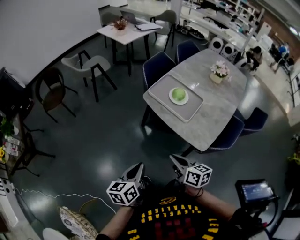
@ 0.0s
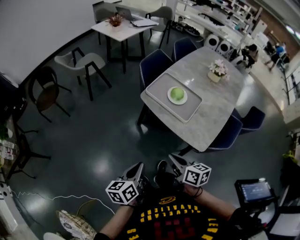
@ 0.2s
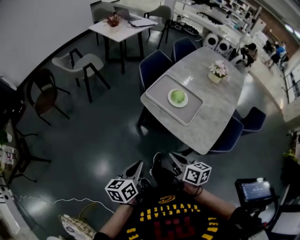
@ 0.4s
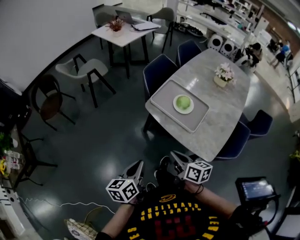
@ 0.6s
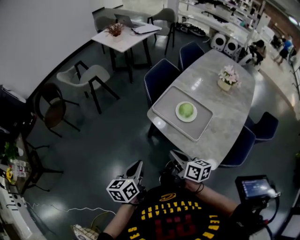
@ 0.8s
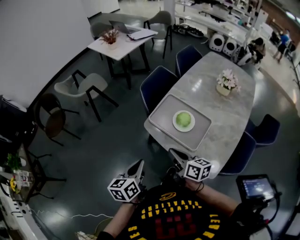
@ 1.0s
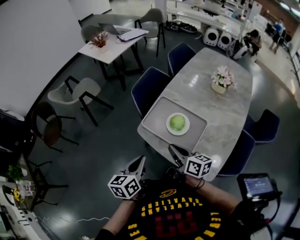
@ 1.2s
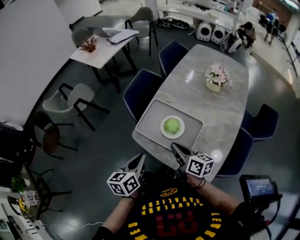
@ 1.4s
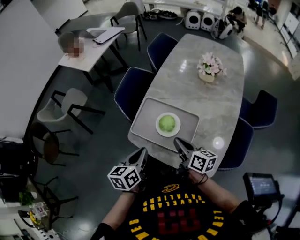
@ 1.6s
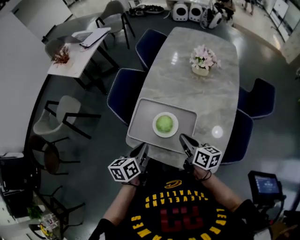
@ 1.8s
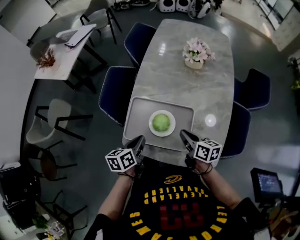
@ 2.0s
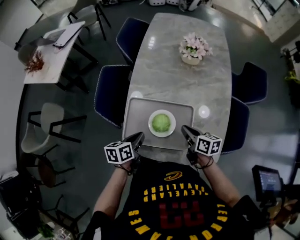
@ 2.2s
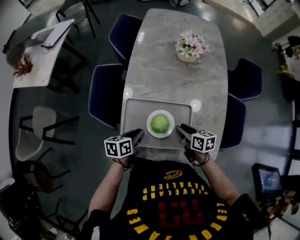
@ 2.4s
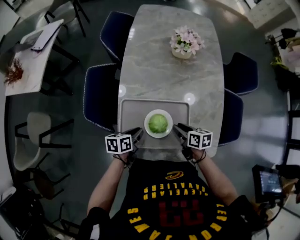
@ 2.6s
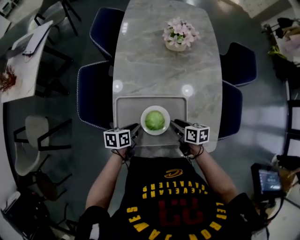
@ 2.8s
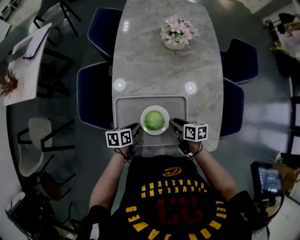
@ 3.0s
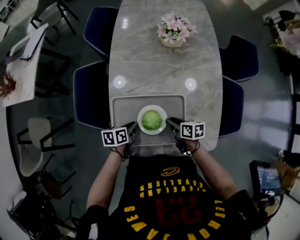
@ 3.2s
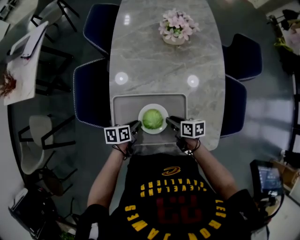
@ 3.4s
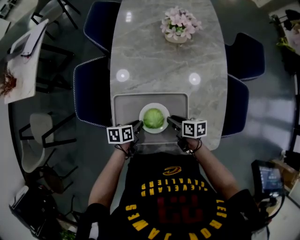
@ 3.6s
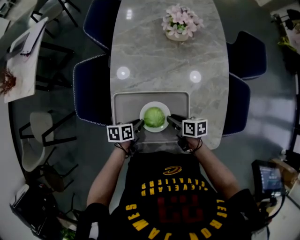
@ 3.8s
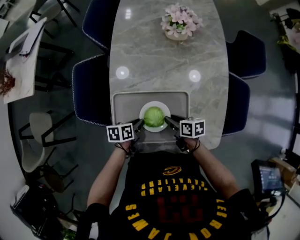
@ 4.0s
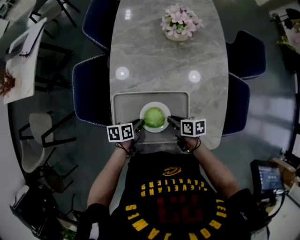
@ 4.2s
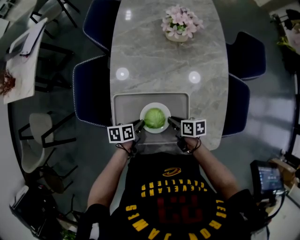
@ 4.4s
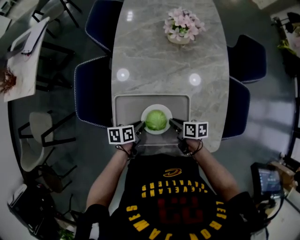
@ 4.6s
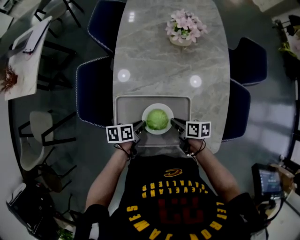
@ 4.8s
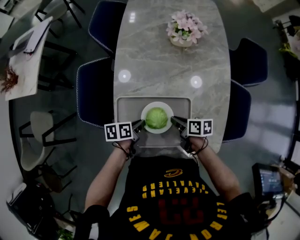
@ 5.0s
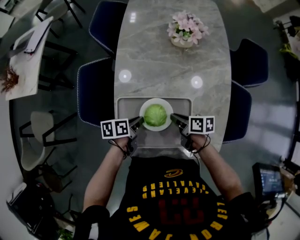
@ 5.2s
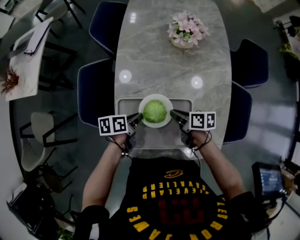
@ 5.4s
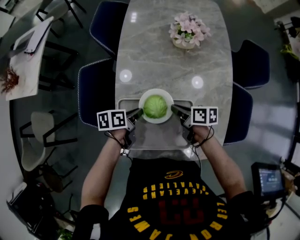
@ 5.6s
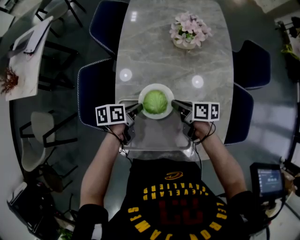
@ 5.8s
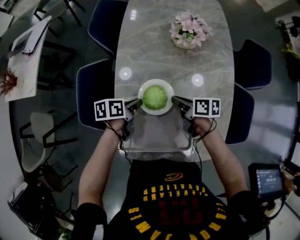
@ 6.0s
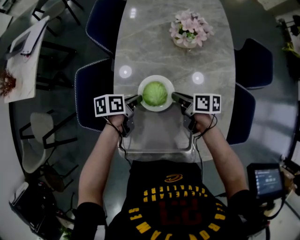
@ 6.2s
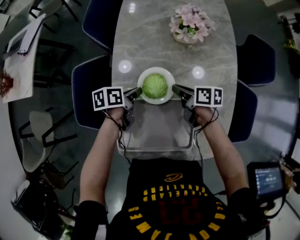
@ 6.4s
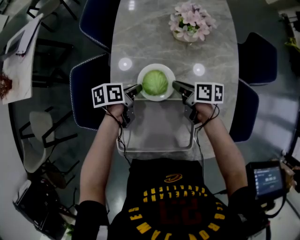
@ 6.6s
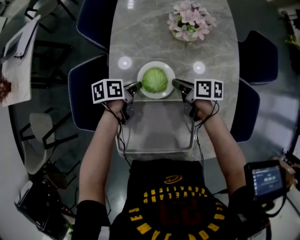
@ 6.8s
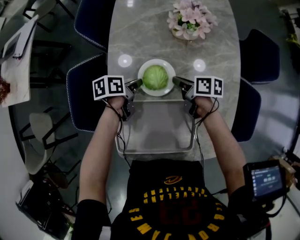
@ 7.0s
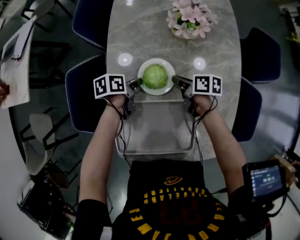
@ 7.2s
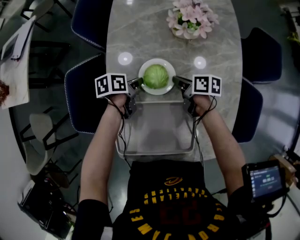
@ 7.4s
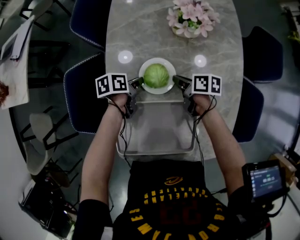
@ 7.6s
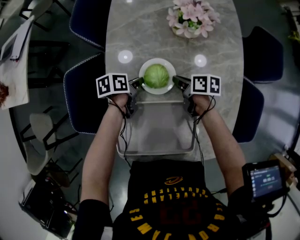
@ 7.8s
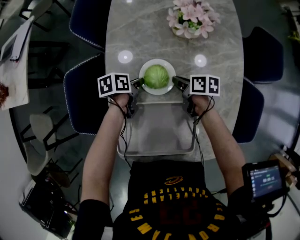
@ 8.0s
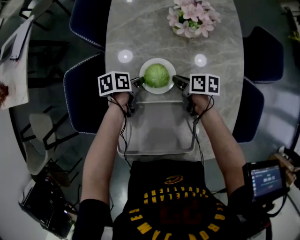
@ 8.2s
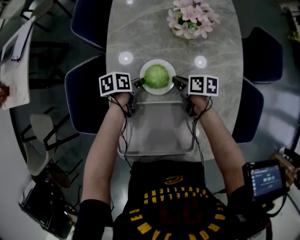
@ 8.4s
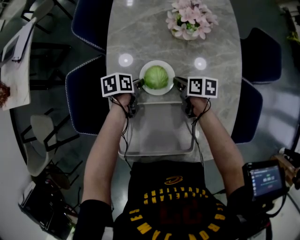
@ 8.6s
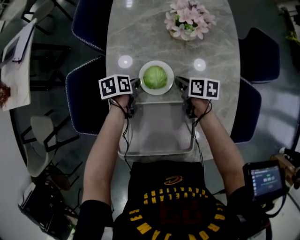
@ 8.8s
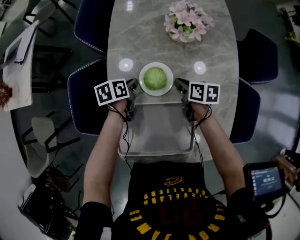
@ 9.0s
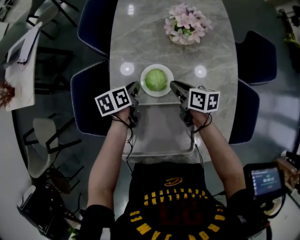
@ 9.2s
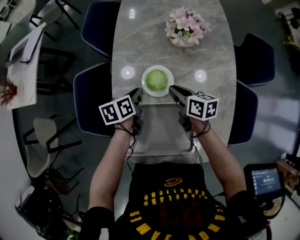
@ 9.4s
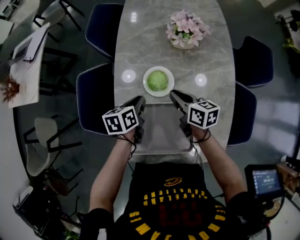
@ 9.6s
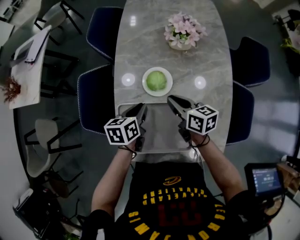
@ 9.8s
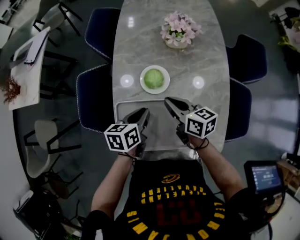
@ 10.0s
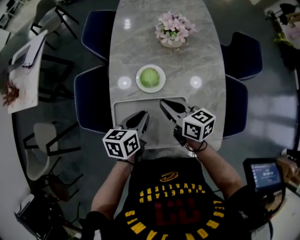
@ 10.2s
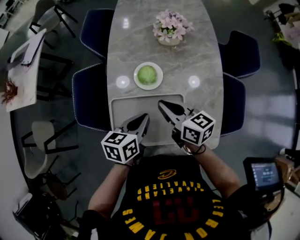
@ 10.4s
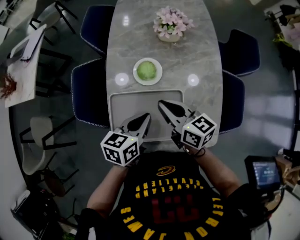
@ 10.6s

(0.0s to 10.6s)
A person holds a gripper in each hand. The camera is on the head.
0.0s - 1.6s: The right gripper is displaced forward and to the right by some 35 cm, and turns by some 20 degrees. The left gripper shifts approximately 40 cm forward.
1.6s - 3.0s: The grippers both shift downward by about 20 cm. The left gripper turns by roughly 50 degrees. The right gripper rotates some 30 degrees, and opens.
3.0s - 4.6s: The right gripper closes.
4.6s - 6.0s: The two grippers go roughly 15 cm forward and upward.
6.0s - 7.6s: The right gripper travels downward and forward by about 10 cm. The left gripper travels forward and downward by about 15 cm.
7.6s - 9.0s: There are only small adjustments of the grippers.
9.0s - 10.6s: The left gripper moves backward and upward, about 30 cm, and changes its angle by approximately 30 degrees; the right gripper goes roughly 30 cm upward and backward, and turns by approximately 30 degrees.

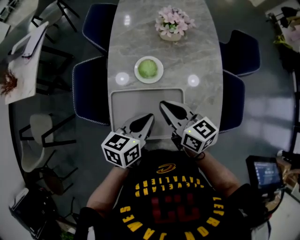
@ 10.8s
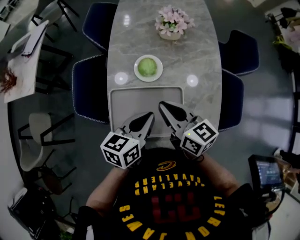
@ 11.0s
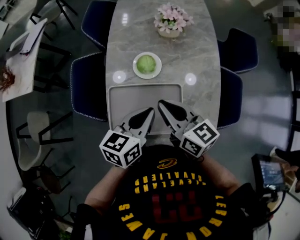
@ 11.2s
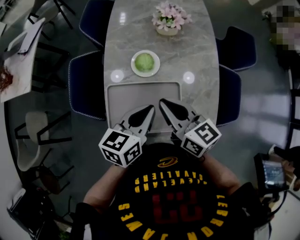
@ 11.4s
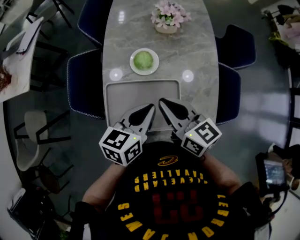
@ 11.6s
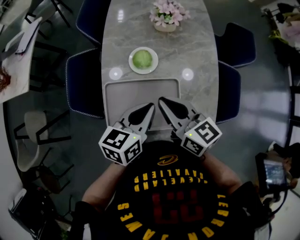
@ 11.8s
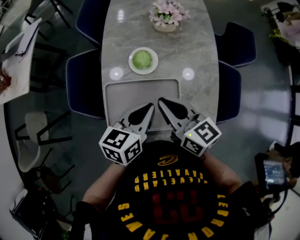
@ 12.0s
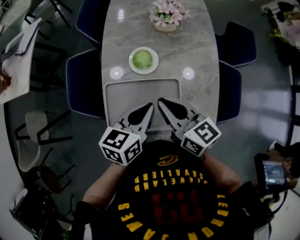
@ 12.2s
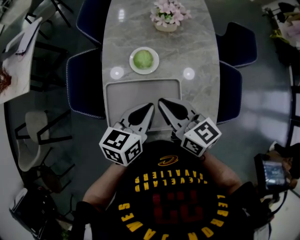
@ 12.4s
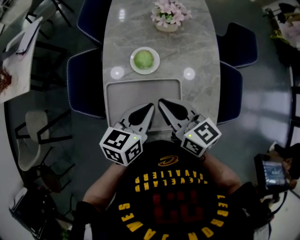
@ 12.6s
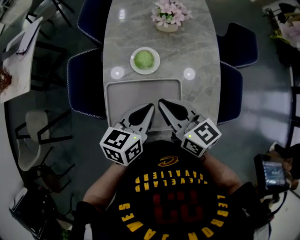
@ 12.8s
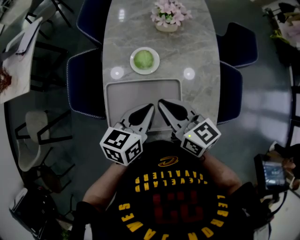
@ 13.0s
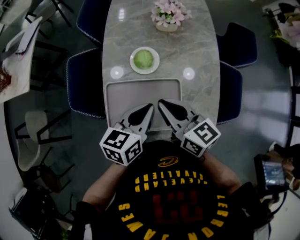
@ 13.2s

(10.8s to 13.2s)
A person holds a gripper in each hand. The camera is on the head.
10.8s - 12.0s: The grippers stay close to where they were, moving slightly.
12.0s - 13.2s: Both grippers stay about where they are.

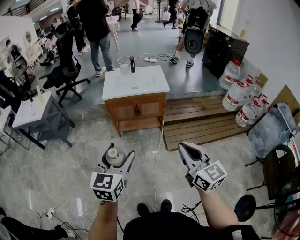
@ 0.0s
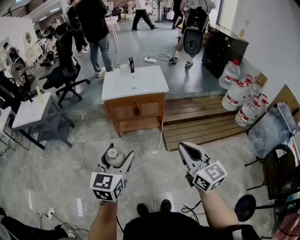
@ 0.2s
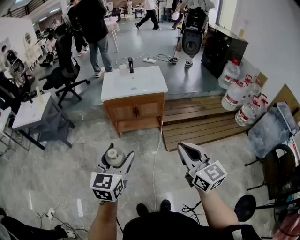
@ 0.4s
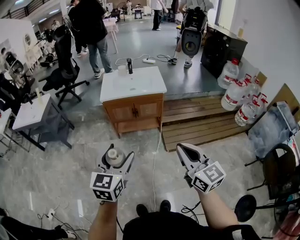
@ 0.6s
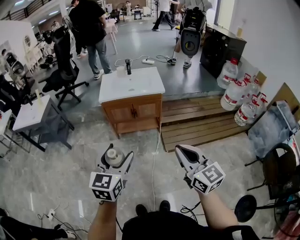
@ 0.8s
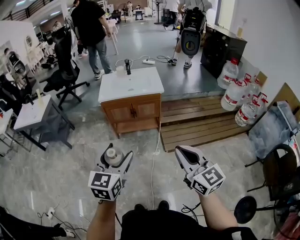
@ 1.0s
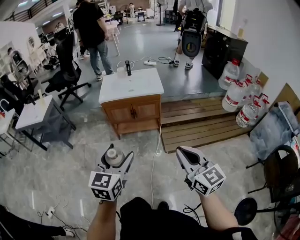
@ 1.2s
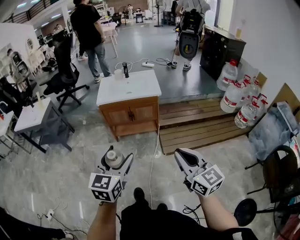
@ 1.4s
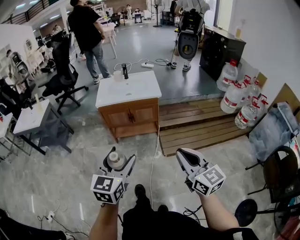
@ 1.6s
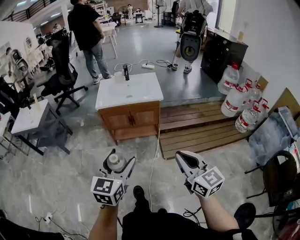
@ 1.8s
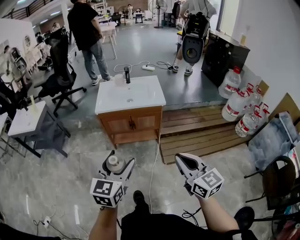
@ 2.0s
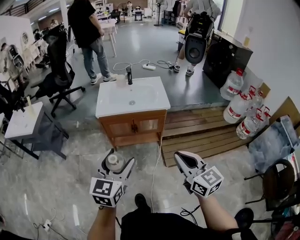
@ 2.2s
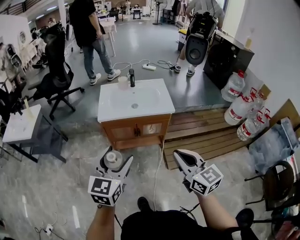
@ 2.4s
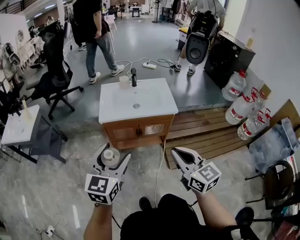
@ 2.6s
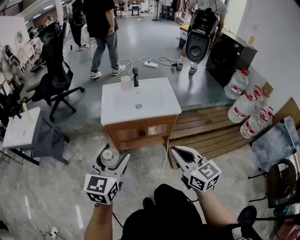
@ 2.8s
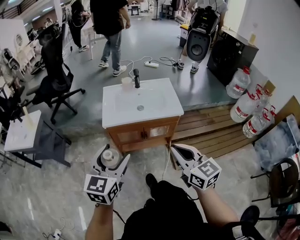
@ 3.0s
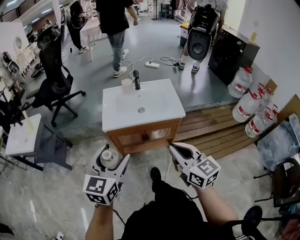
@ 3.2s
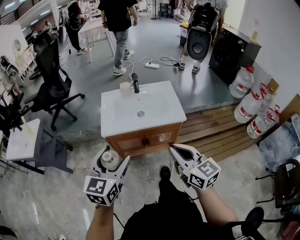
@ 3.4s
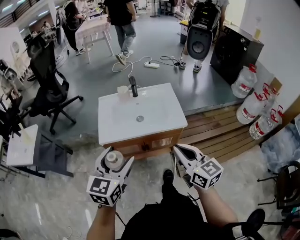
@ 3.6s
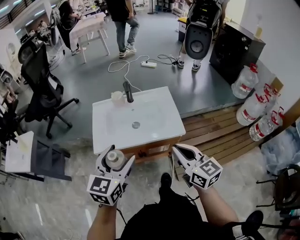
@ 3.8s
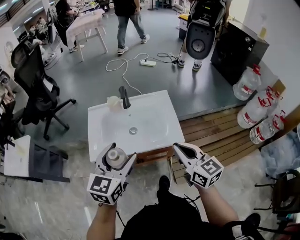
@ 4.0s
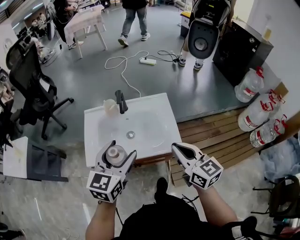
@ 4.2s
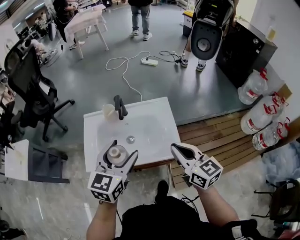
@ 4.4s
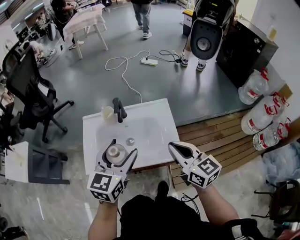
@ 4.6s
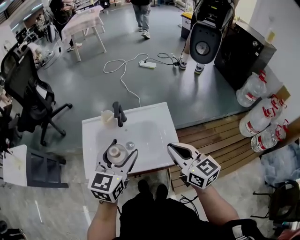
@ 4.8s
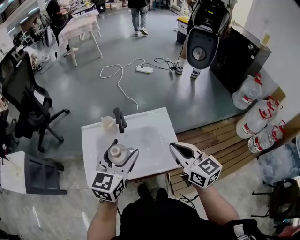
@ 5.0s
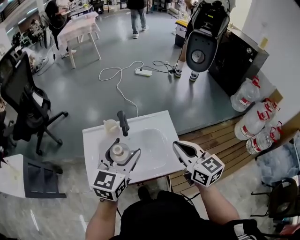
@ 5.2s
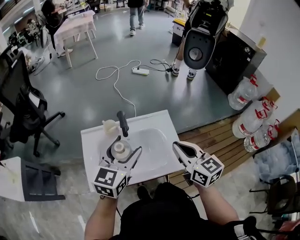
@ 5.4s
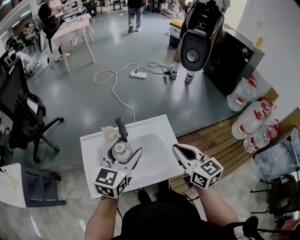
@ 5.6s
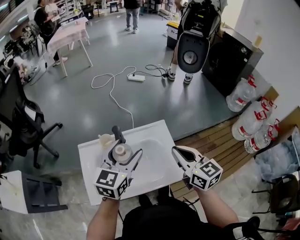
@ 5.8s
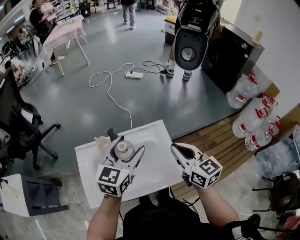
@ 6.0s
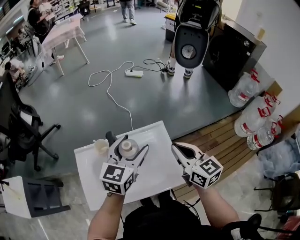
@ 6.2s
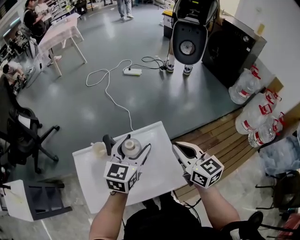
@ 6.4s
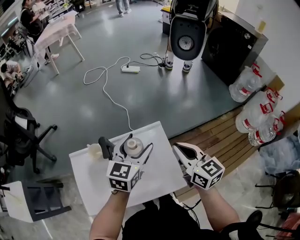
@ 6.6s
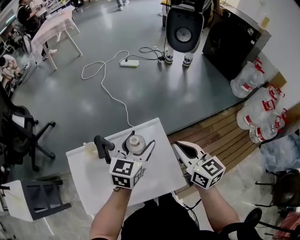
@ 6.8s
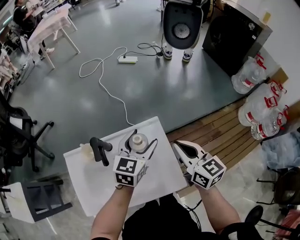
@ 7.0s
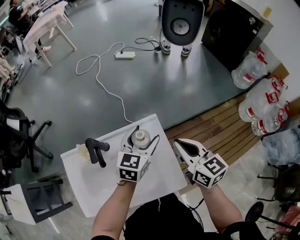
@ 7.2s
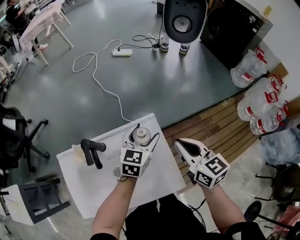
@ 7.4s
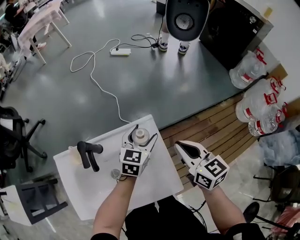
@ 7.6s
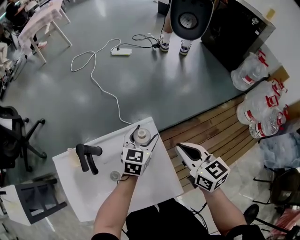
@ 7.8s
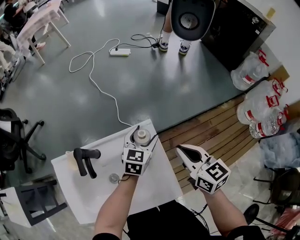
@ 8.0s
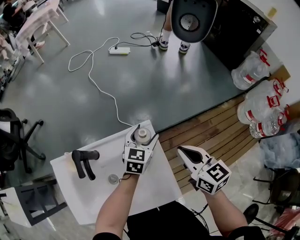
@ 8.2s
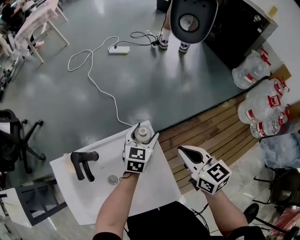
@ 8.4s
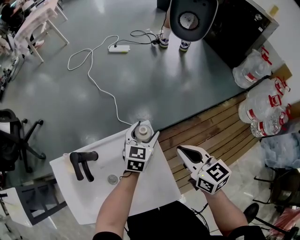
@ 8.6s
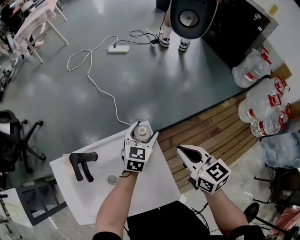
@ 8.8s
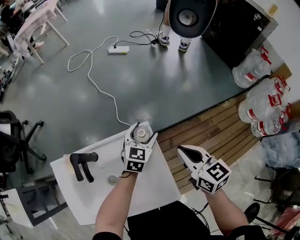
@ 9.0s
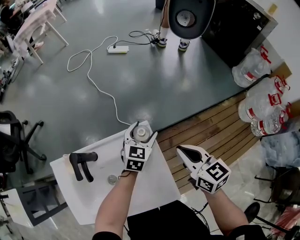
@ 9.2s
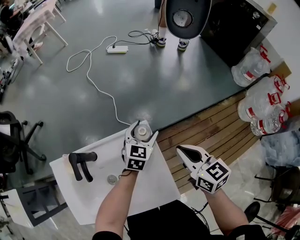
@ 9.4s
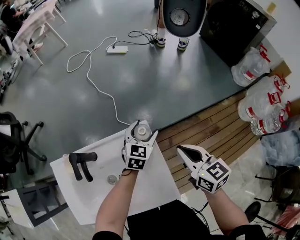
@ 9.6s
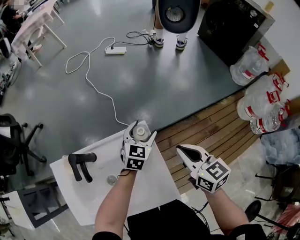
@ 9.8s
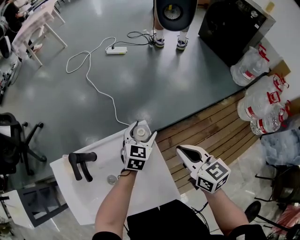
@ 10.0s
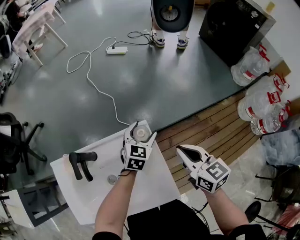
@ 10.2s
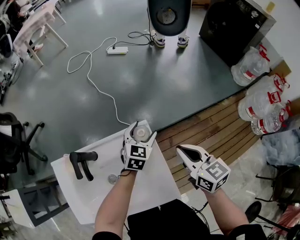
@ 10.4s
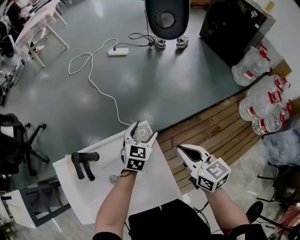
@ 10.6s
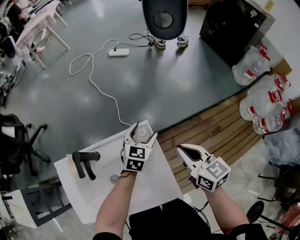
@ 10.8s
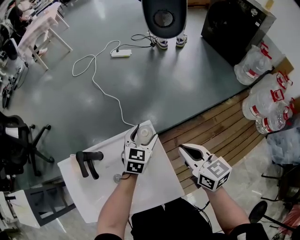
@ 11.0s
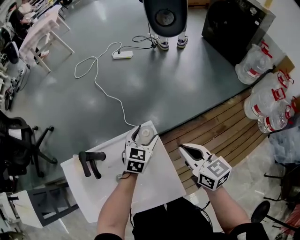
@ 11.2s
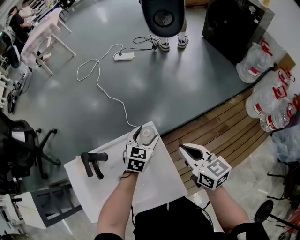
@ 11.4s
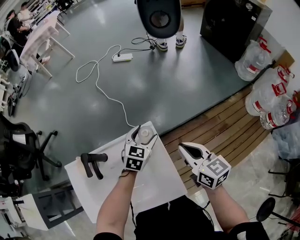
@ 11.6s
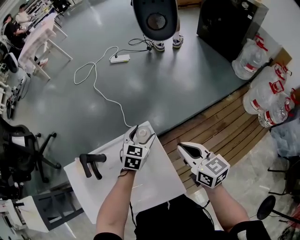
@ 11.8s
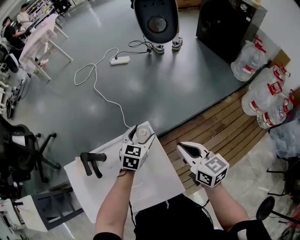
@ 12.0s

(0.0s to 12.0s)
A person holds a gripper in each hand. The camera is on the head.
0.0s - 1.6s: The grippers both shift to the right by roughly 10 cm.
1.6s - 3.0s: Both grippers move forward and to the left, roughly 35 cm.
3.0s - 4.4s: The left gripper goes about 40 cm forward and to the right. The right gripper shifts some 35 cm forward.
4.4s - 6.0s: Both grippers move forward, roughly 15 cm.
6.0s - 7.6s: The left gripper heads downward, forward and to the right, covering about 30 cm; the right gripper travels downward, forward and to the right by about 20 cm.
7.6s - 9.0s: The right gripper ends up about 5 cm from where it was, while the left gripper travels forward and downward by approximately 5 cm.
9.0s - 10.4s: Neither gripper changes place.
10.4s - 12.0s: There are only small adjustments of the grippers.
